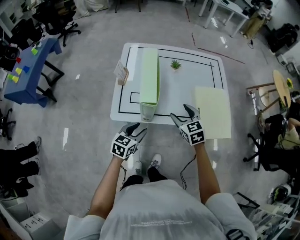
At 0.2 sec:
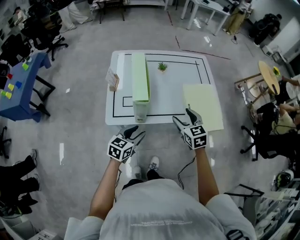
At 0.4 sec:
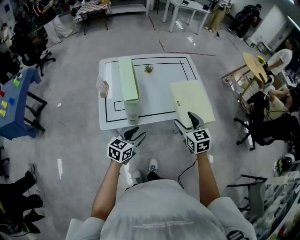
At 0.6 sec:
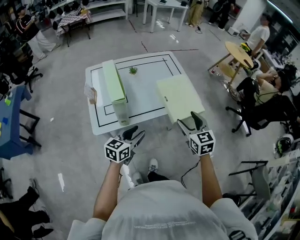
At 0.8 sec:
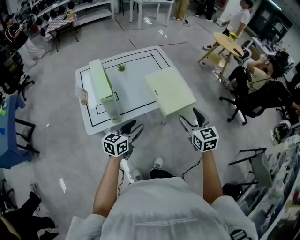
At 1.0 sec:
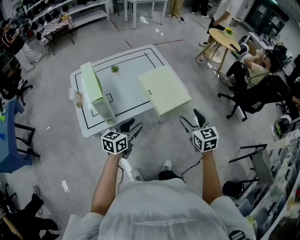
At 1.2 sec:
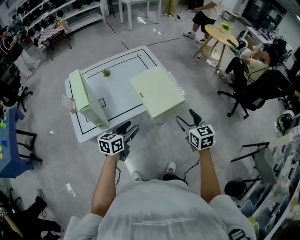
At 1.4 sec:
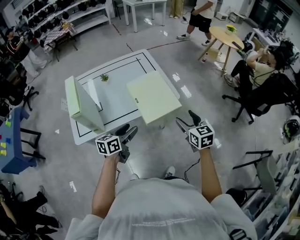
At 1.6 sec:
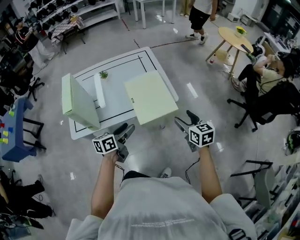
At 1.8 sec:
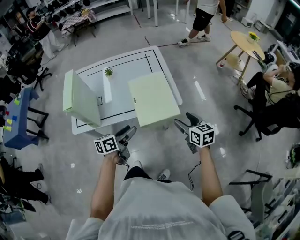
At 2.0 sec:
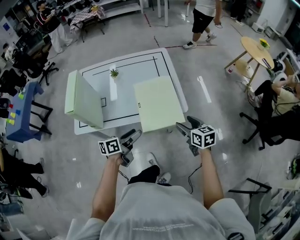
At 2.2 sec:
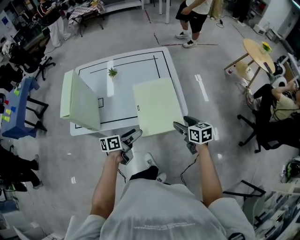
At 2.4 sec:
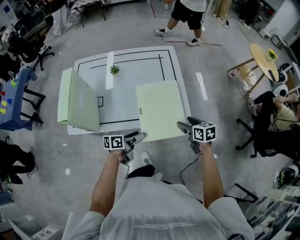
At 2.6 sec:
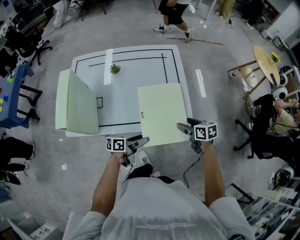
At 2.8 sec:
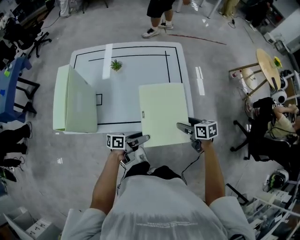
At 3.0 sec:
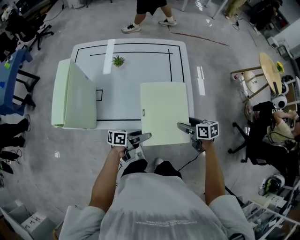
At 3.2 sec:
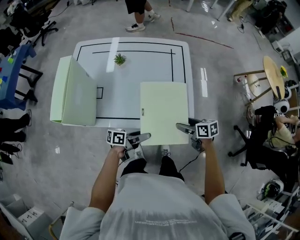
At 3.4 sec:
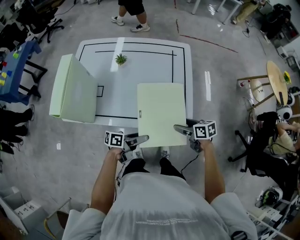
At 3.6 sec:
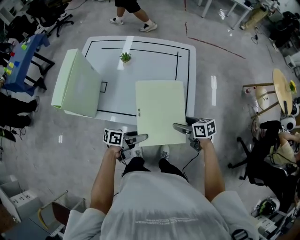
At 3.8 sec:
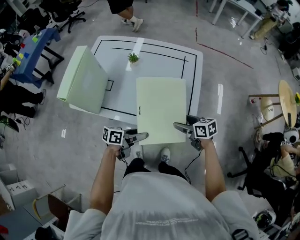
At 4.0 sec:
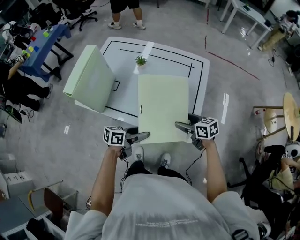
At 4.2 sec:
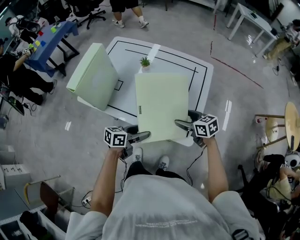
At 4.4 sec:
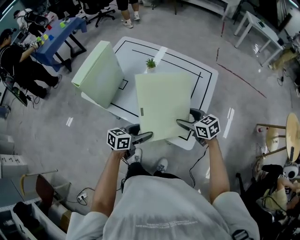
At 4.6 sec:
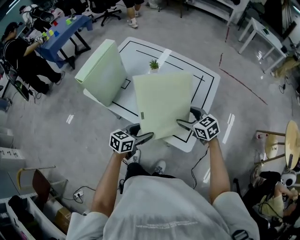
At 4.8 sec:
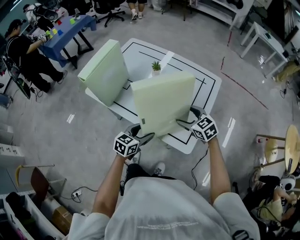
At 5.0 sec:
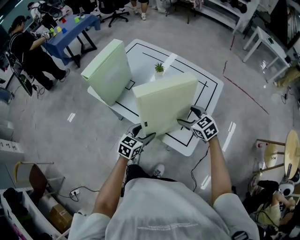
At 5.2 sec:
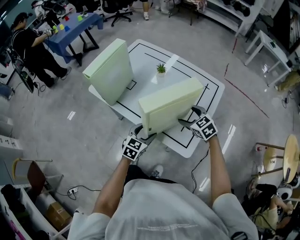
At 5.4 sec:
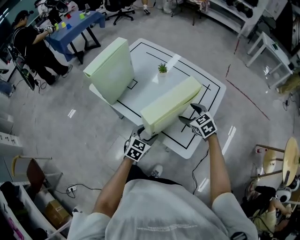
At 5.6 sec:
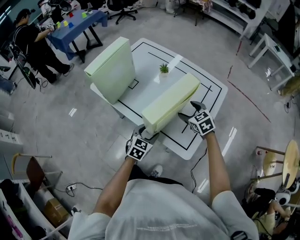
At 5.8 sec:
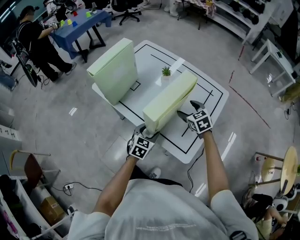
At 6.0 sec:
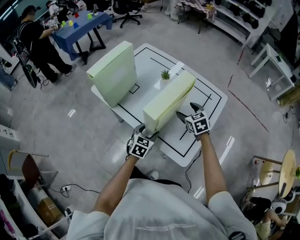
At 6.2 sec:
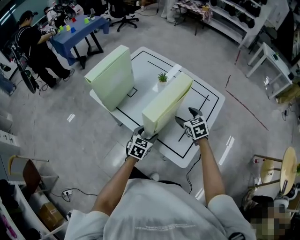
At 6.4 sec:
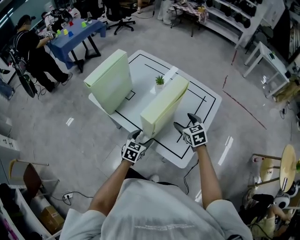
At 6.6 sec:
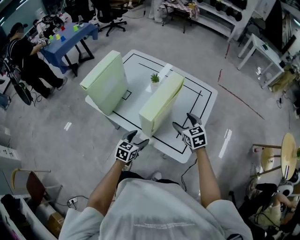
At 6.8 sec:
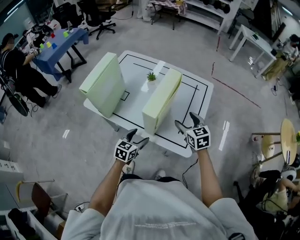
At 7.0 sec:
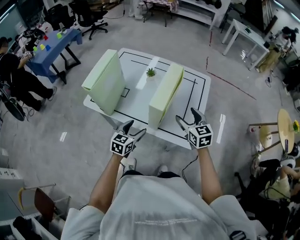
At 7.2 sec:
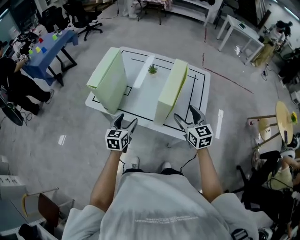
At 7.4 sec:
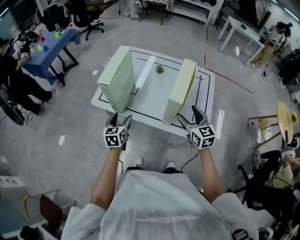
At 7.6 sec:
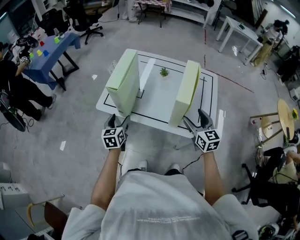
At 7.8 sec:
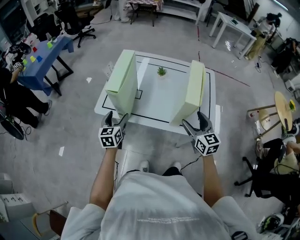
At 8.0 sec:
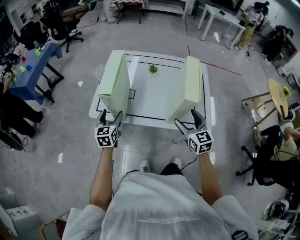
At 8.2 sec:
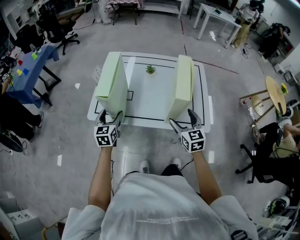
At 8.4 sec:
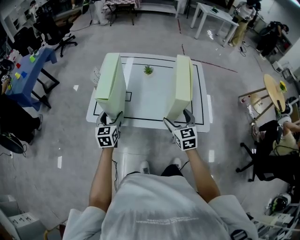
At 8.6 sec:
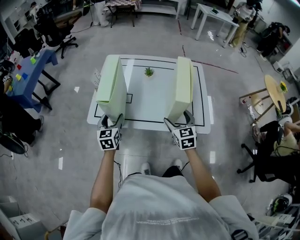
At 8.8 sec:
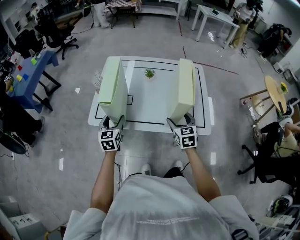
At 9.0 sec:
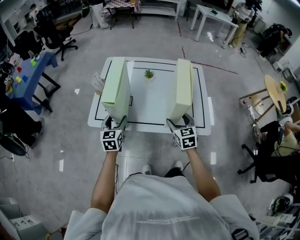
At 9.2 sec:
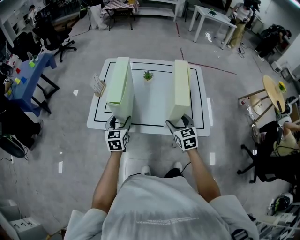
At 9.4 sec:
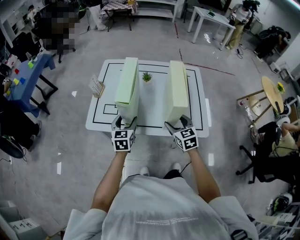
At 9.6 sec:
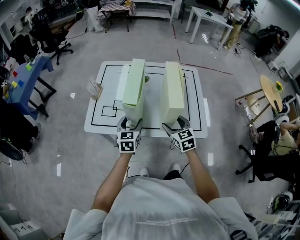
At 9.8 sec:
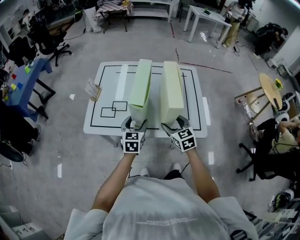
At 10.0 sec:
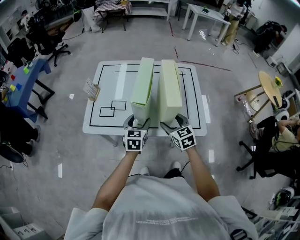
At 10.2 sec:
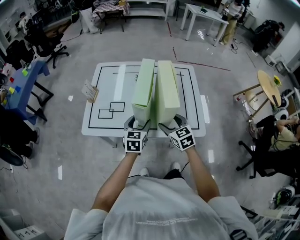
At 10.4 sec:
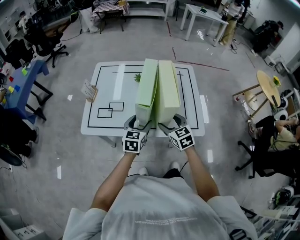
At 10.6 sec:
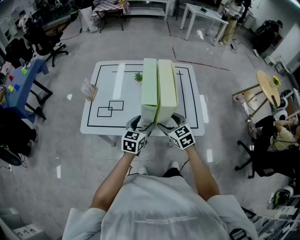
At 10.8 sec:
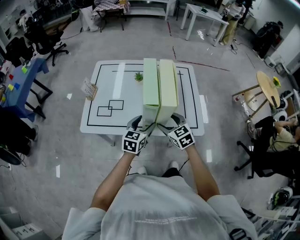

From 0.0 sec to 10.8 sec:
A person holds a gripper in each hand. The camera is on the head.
From 0.0 sec to 1.6 sec: The right gripper changes place by roughly 40 cm, and changes its angle by some 30 degrees. The left gripper moves approximately 30 cm, and turns by approximately 30 degrees.
From 1.6 sec to 3.0 sec: The right gripper travels forward and downward by roughly 25 cm, and changes its angle by roughly 40 degrees; the left gripper travels downward, forward and to the right by roughly 20 cm, and swivels approximately 30 degrees.
From 3.0 sec to 4.6 sec: The right gripper moves roughly 15 cm, and twists approximately 50 degrees counterclockwise, seen from behind. Meanwhile the left gripper moves upward, roughly 5 cm, and changes its angle by roughly 50 degrees.
From 4.6 sec to 6.2 sec: The right gripper is displaced forward by approximately 10 cm. The left gripper shifts roughly 10 cm forward and downward, and turns by some 30 degrees.
From 6.2 sec to 7.8 sec: The right gripper travels backward, to the left and upward by about 20 cm, and swivels some 40 degrees; the left gripper travels to the left by approximately 30 cm.
From 7.8 sec to 9.2 sec: The right gripper heads downward, covering some 5 cm; the left gripper is displaced to the right by some 5 cm.
From 9.2 sec to 10.8 sec: The left gripper goes about 15 cm to the right, and changes its angle by roughly 20 degrees.

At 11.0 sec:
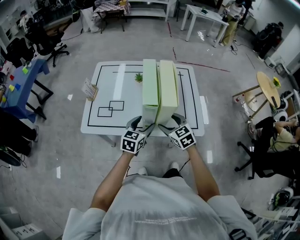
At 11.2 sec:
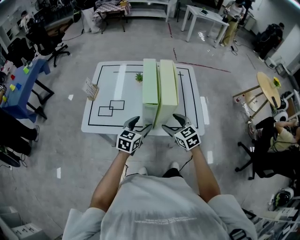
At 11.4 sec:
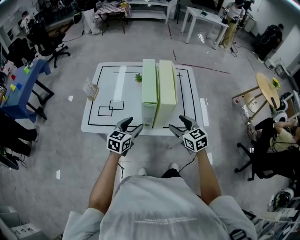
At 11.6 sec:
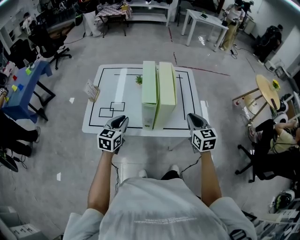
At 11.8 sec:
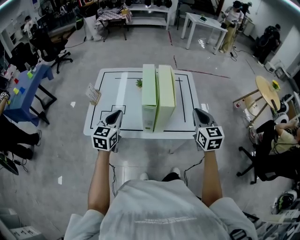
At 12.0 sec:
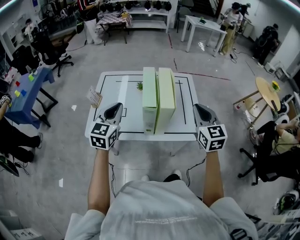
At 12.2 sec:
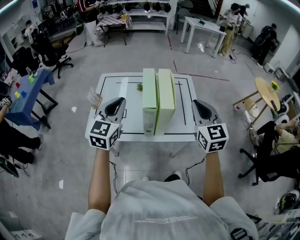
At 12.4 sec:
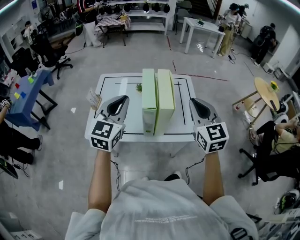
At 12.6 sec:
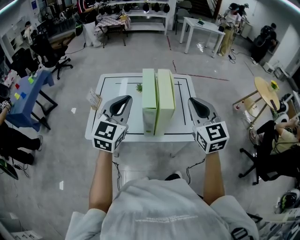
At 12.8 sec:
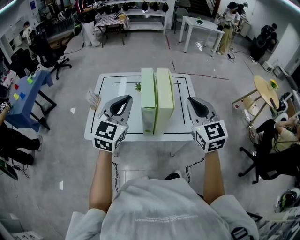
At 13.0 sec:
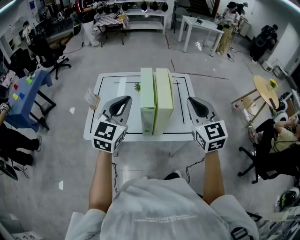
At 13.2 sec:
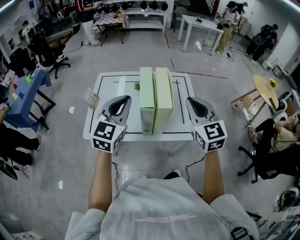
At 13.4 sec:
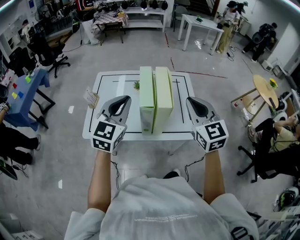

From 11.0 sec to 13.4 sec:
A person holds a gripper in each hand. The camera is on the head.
From 11.0 sec to 12.2 sec: The right gripper heads upward, covering approximately 25 cm, swivels approximately 30 degrees, and closes; the left gripper travels upward and to the left by about 25 cm, turns by approximately 30 degrees, and closes up.
From 12.2 sec to 13.4 sec: There are only small adjustments of the grippers.

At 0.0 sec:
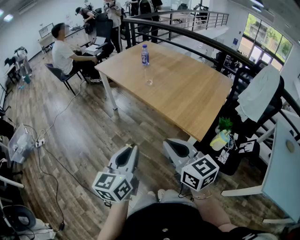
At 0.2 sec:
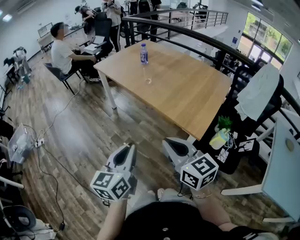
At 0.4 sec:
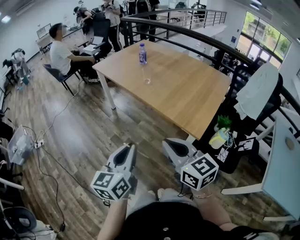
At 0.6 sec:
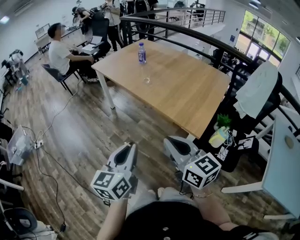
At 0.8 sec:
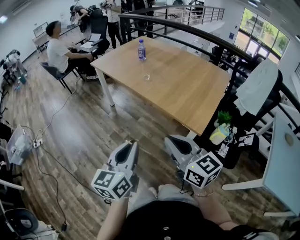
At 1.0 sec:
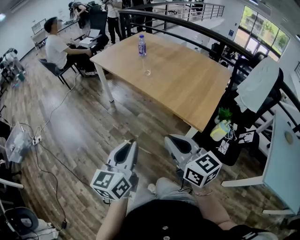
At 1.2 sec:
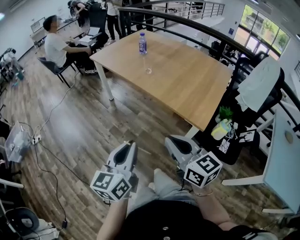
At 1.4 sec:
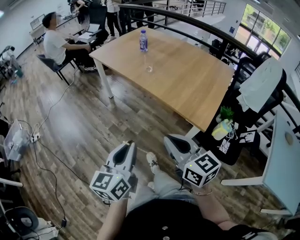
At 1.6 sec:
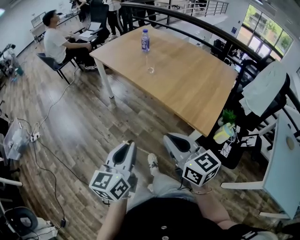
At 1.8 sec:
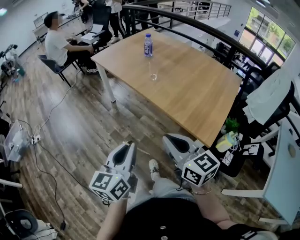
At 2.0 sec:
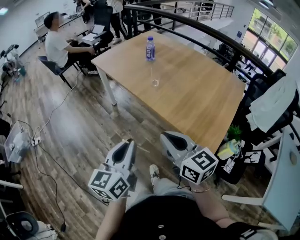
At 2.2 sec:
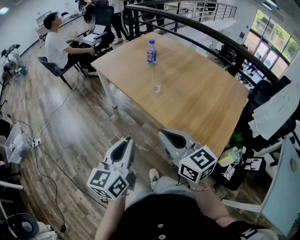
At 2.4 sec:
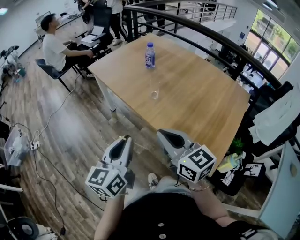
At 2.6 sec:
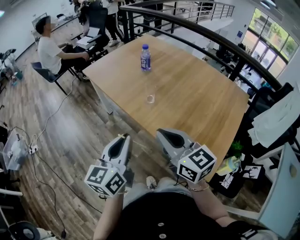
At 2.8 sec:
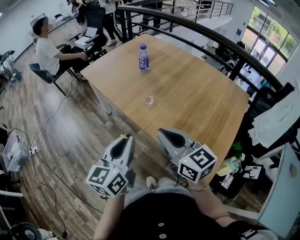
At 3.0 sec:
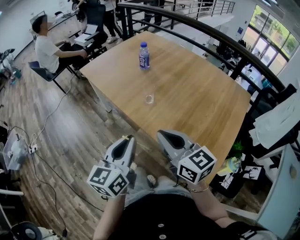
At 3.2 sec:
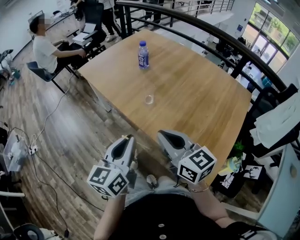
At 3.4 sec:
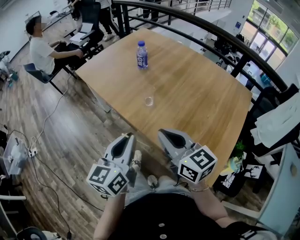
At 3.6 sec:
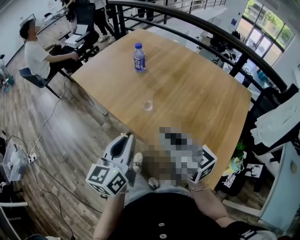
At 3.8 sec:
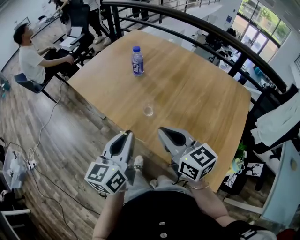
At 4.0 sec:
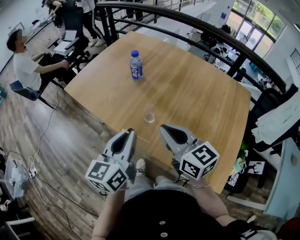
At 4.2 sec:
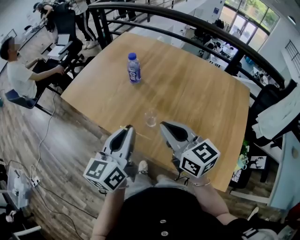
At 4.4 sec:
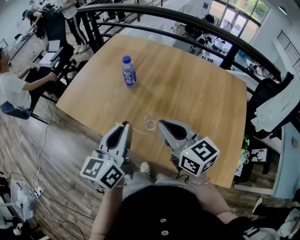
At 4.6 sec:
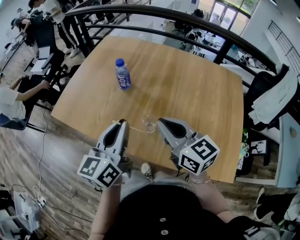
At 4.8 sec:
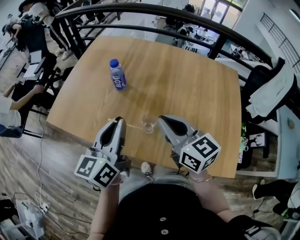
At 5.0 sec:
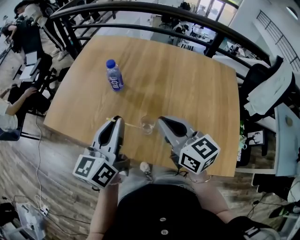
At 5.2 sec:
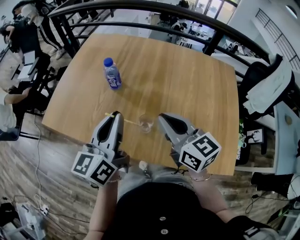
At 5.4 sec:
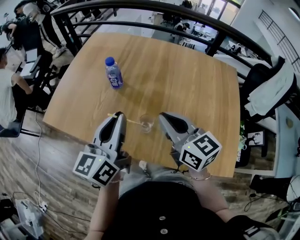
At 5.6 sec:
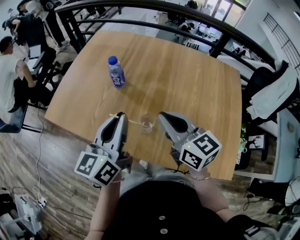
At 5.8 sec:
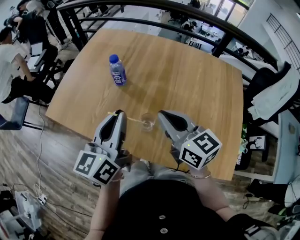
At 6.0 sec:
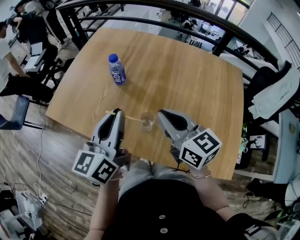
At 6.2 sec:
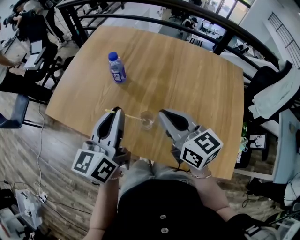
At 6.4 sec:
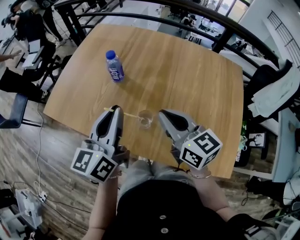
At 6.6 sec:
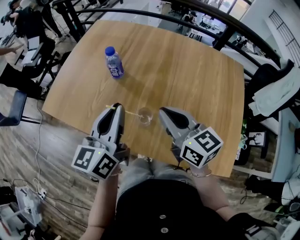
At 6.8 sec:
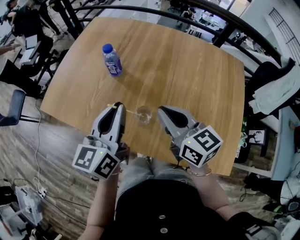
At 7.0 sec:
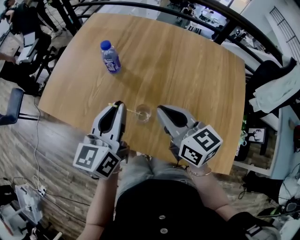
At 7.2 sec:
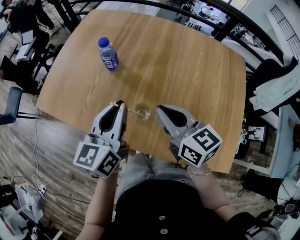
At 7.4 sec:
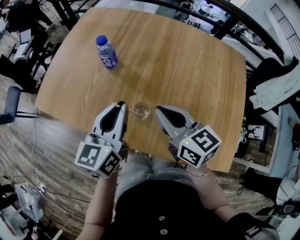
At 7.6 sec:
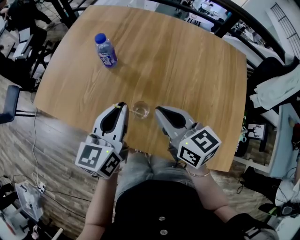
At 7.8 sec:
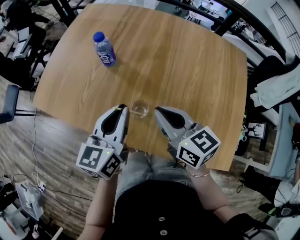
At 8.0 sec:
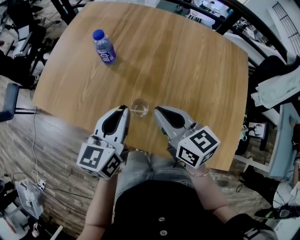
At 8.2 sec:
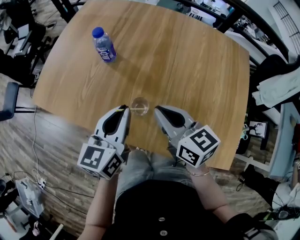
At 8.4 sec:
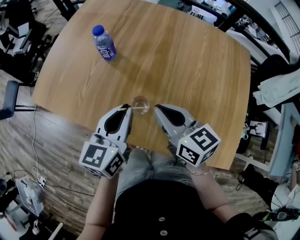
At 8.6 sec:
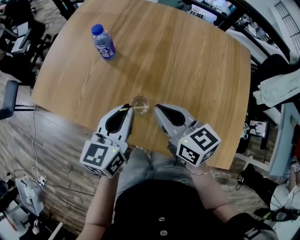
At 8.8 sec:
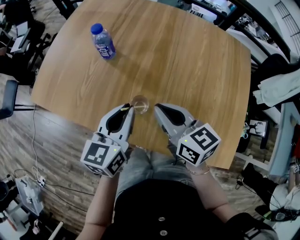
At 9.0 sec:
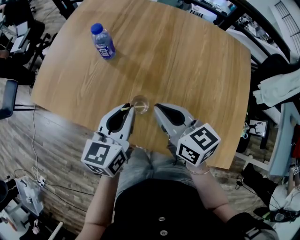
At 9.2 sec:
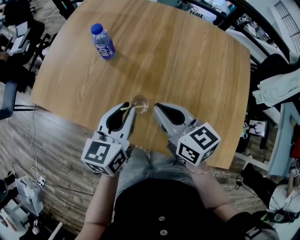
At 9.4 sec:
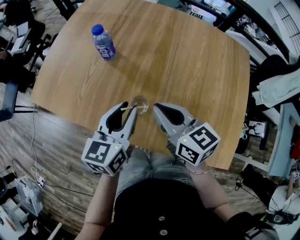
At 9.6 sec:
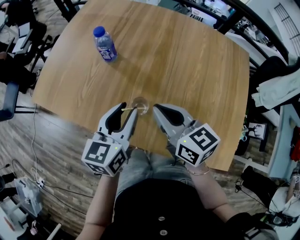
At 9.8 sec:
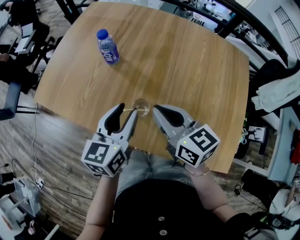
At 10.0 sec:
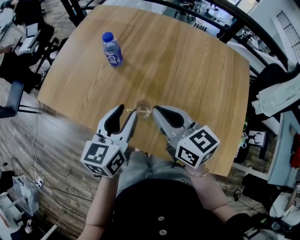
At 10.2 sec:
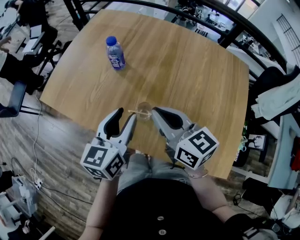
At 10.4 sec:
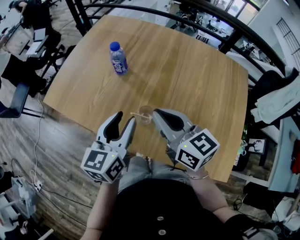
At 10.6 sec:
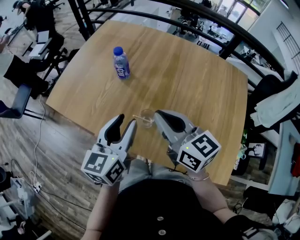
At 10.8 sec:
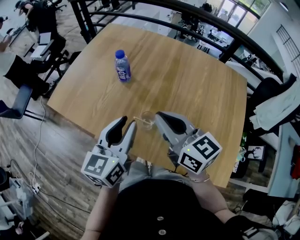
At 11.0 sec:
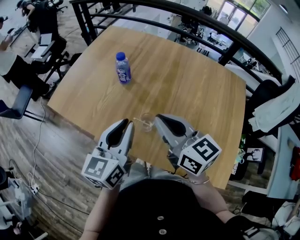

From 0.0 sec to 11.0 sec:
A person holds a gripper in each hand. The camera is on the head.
From 0.0 sec to 1.6 sec: Both grippers move forward, some 5 cm.
From 1.6 sec to 3.2 sec: The grippers both shift forward by about 30 cm.
From 3.2 sec to 4.8 sec: Both grippers travel together forward, some 30 cm. The right gripper rotates approximately 30 degrees. Meanwhile the left gripper rotates some 20 degrees.
From 4.8 sec to 6.2 sec: The grippers make only small movements.
From 6.2 sec to 7.8 sec: The grippers both shift downward by approximately 10 cm.
From 7.8 sec to 9.4 sec: The grippers make only small movements.
From 9.4 sec to 11.0 sec: Both grippers travel together upward, approximately 10 cm.
